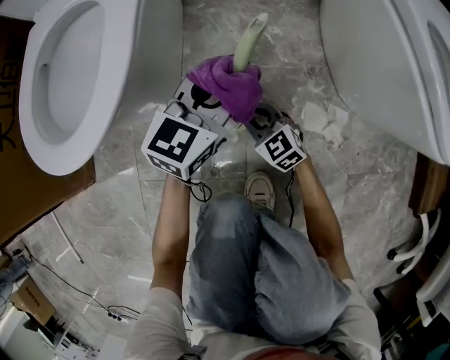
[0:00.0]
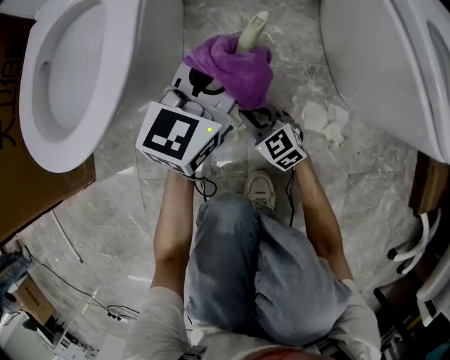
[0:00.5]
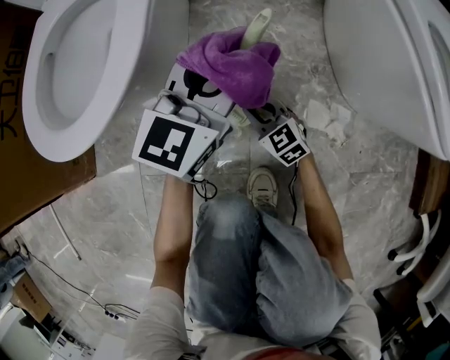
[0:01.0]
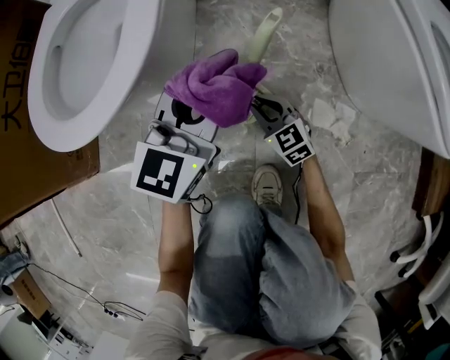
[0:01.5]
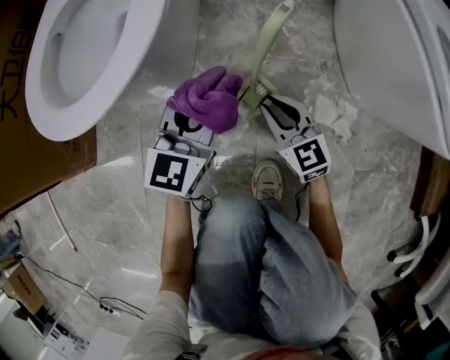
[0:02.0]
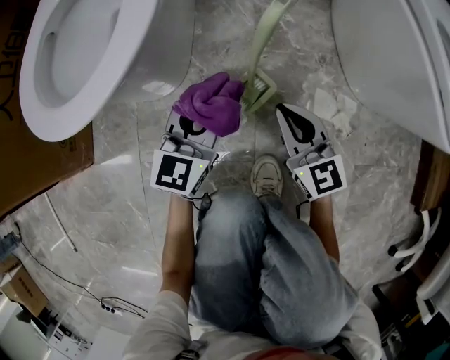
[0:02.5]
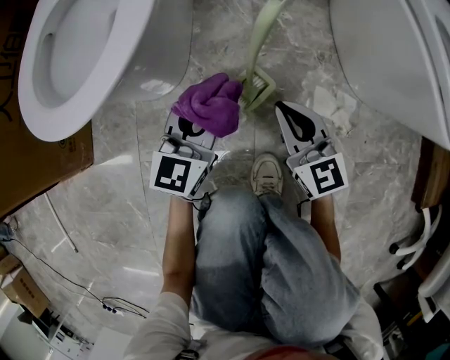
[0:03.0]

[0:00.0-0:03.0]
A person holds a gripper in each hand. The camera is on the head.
0:00.0 to 0:01.5: The left gripper travels to the left and upward by approximately 10 cm.
0:01.5 to 0:03.0: The left gripper travels downward by about 10 cm. The right gripper goes roughly 15 cm upward and backward, and rotates about 20 degrees.

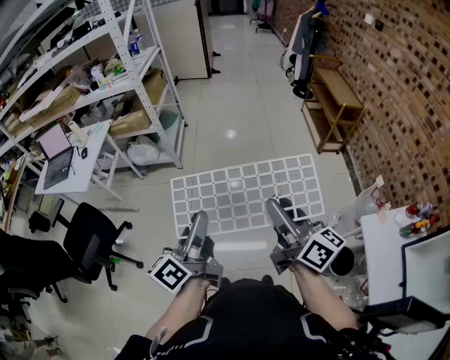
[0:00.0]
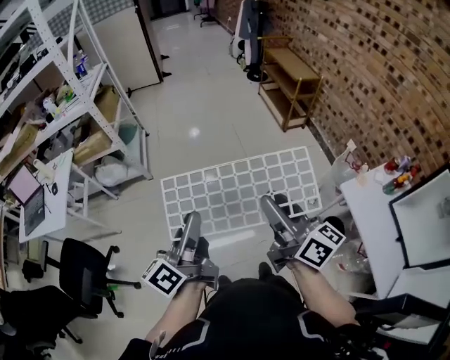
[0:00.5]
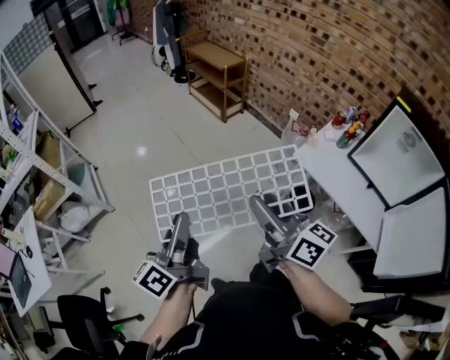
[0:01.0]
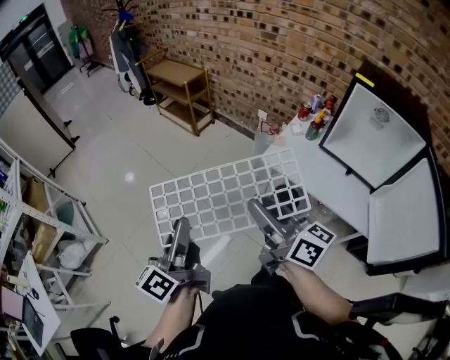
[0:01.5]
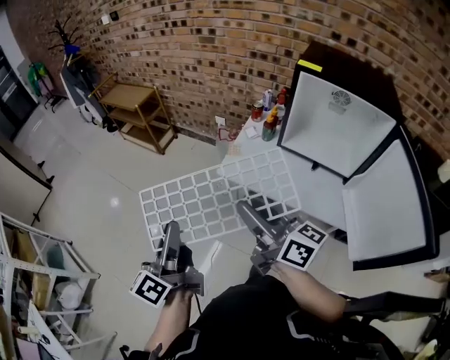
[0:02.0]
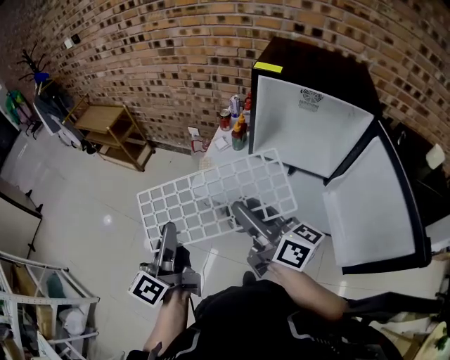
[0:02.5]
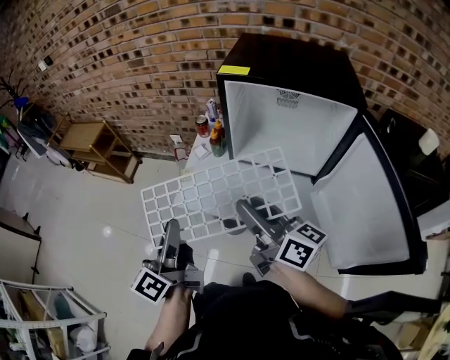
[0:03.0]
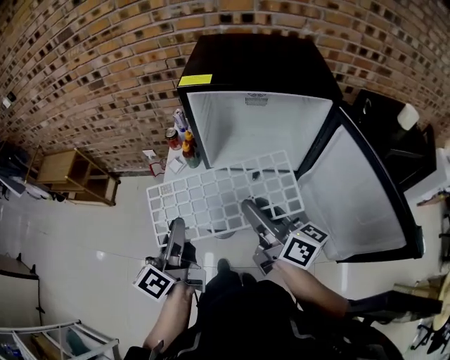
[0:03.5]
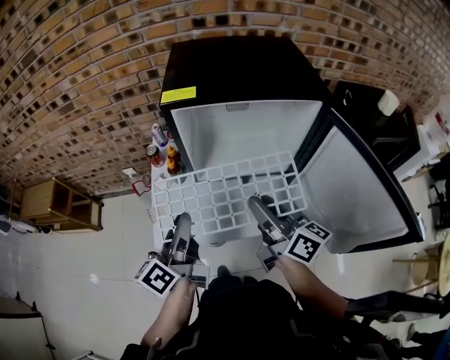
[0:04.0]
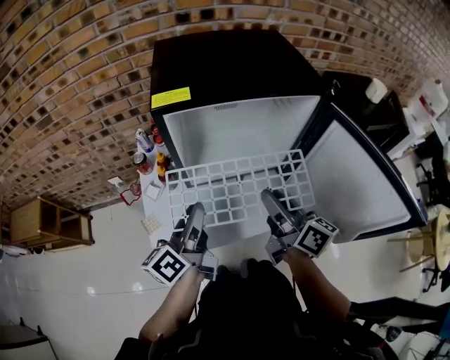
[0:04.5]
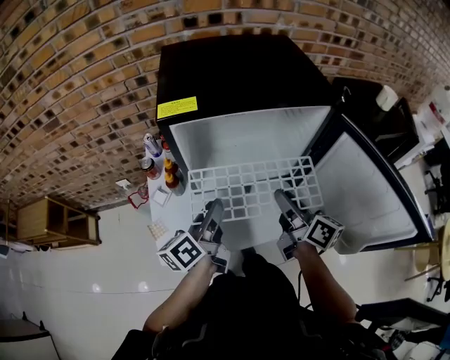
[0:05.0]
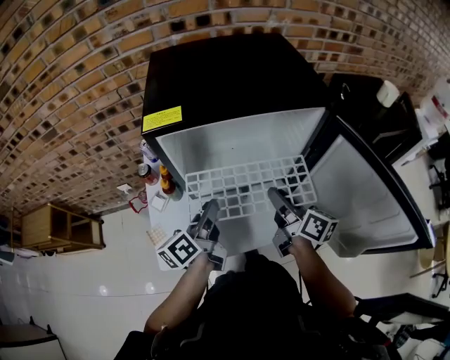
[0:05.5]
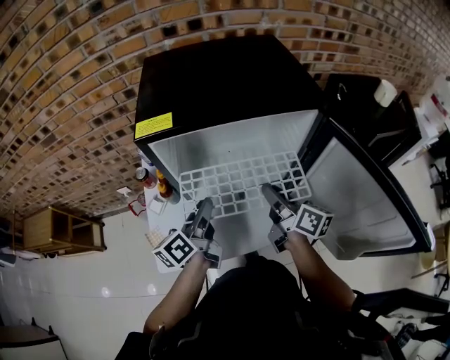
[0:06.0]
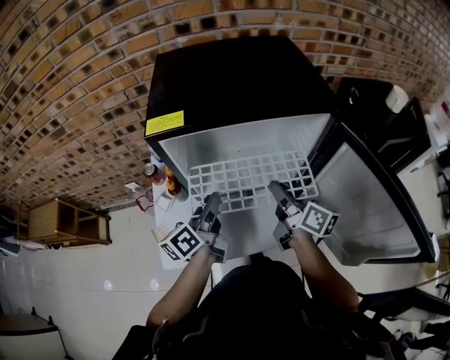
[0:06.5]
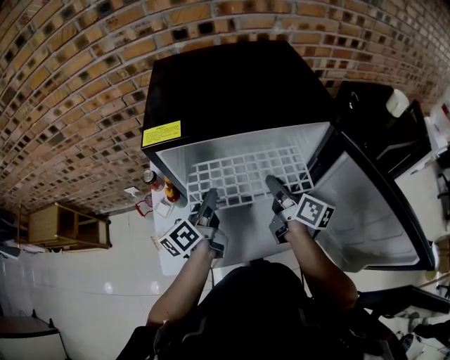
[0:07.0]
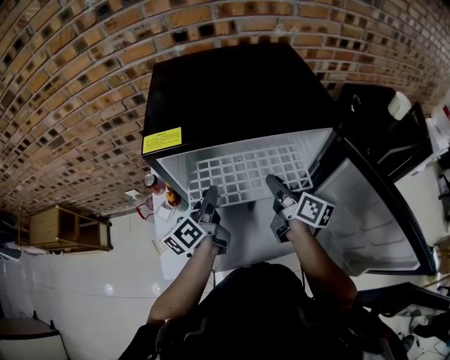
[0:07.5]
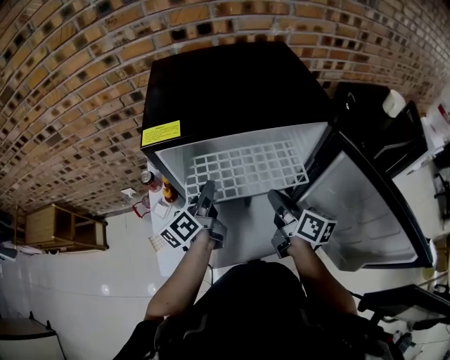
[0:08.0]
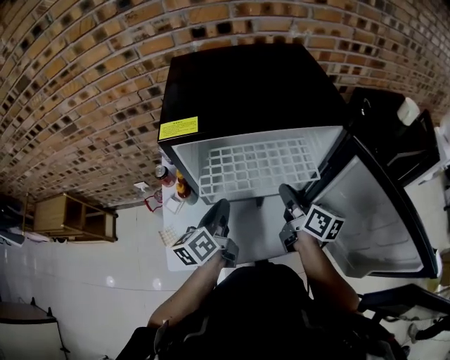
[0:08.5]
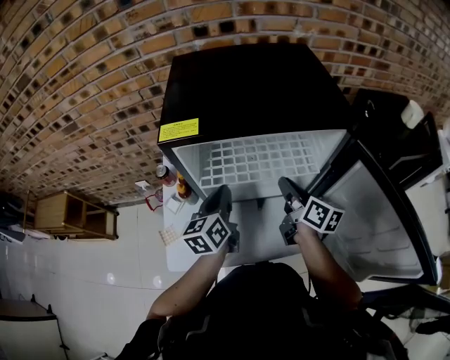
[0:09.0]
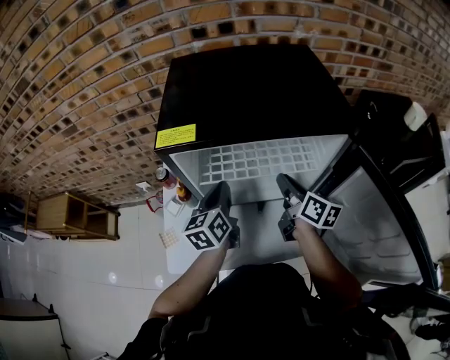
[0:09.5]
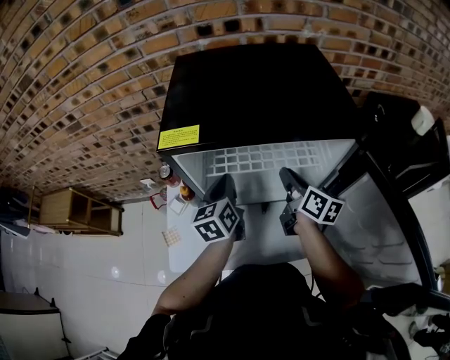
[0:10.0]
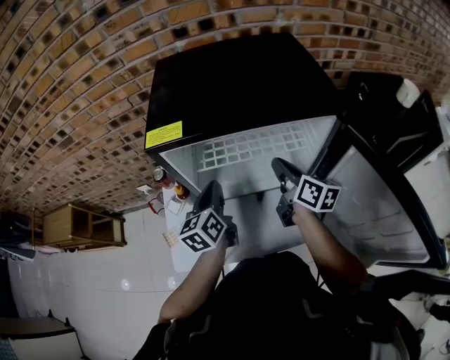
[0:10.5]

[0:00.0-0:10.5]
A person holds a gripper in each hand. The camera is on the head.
0:00.0 to 0:02.0: Both grippers are carried some 40 cm. The right gripper rotates approximately 50 degrees; the left gripper rotates approximately 50 degrees.
0:02.0 to 0:04.0: The right gripper changes place by some 30 cm, and changes its angle by about 40 degrees, while the left gripper shifts by about 40 cm, and swivels roughly 40 degrees.
0:04.0 to 0:06.5: Both grippers move forward, downward and to the right, about 15 cm.
0:06.5 to 0:08.5: The left gripper closes its fingers.
0:08.5 to 0:10.5: Both grippers travel together forward, about 5 cm. The left gripper turns by some 20 degrees.

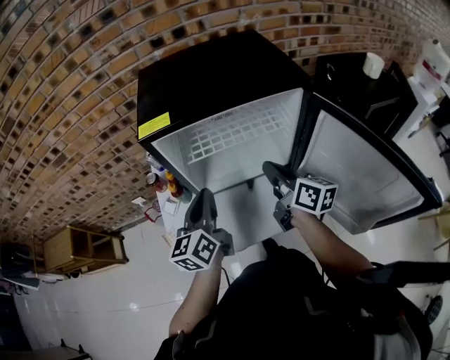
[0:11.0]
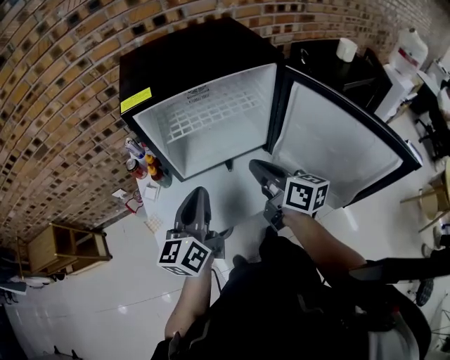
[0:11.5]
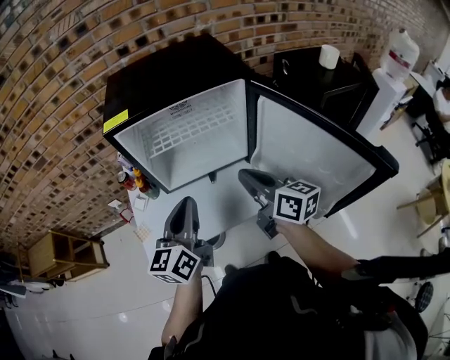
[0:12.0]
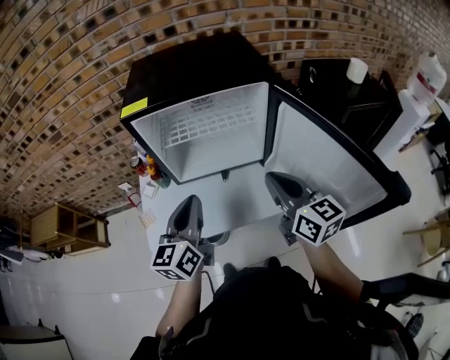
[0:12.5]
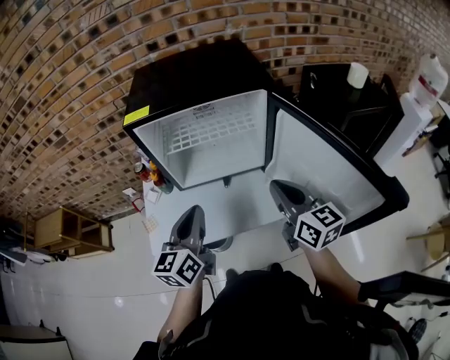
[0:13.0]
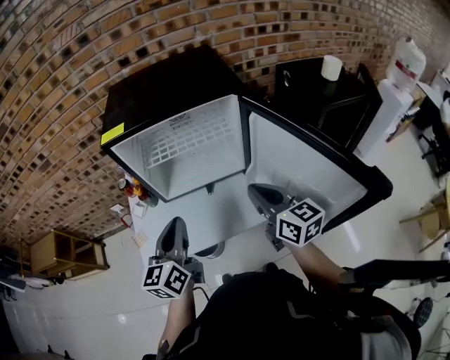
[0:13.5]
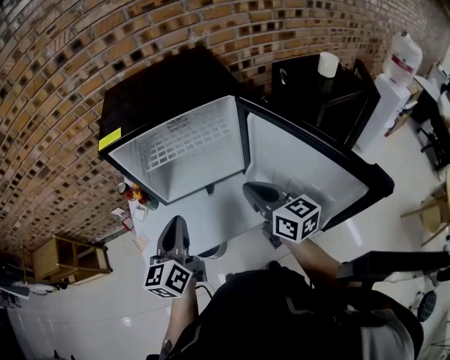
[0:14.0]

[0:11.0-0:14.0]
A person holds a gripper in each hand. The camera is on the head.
0:11.0 to 0:12.5: The left gripper travels backward and to the right by approximately 10 cm, while the right gripper goes approximately 15 cm backward, to the right and upward, and swivels about 20 degrees.
0:12.5 to 0:14.0: The grippers stay close to where they were, moving slightly.

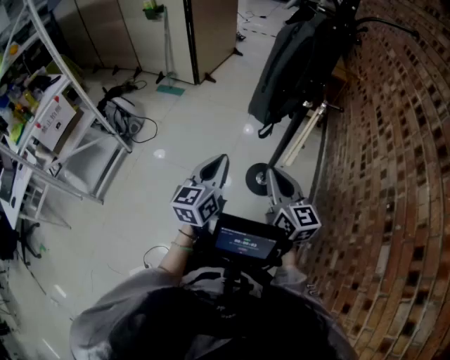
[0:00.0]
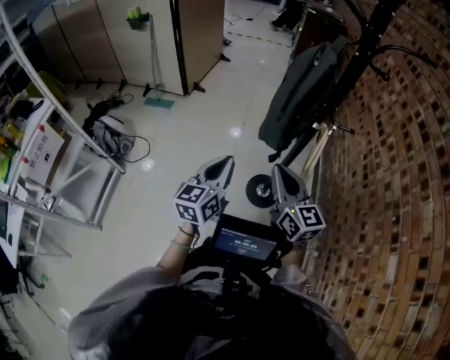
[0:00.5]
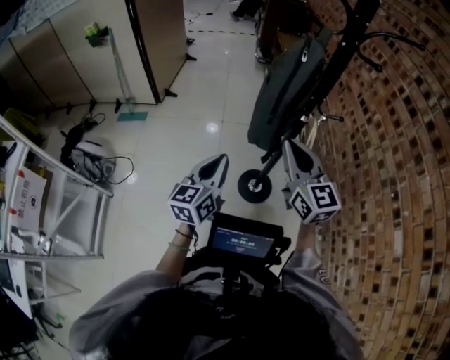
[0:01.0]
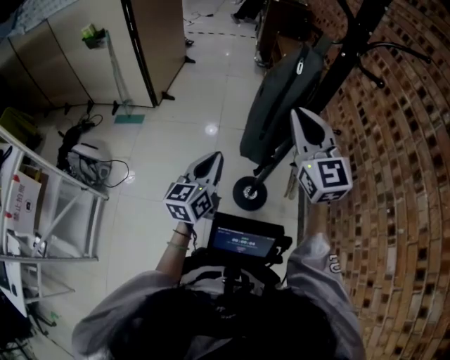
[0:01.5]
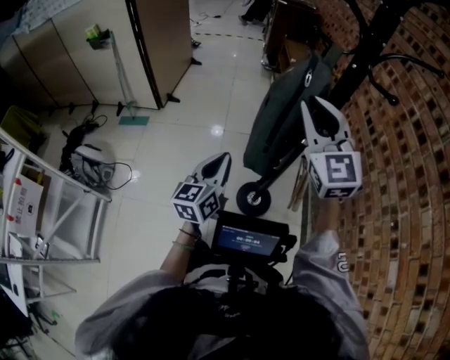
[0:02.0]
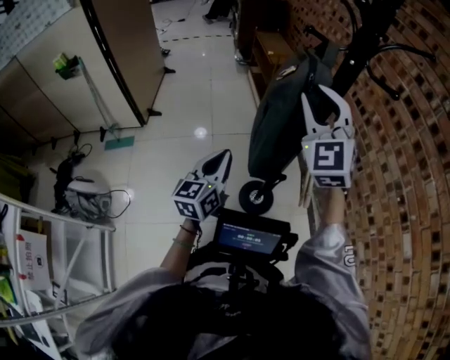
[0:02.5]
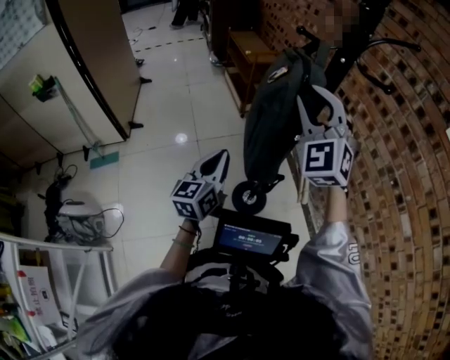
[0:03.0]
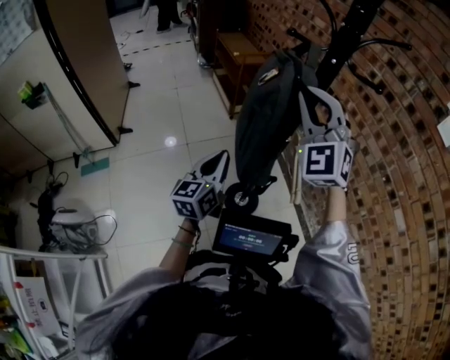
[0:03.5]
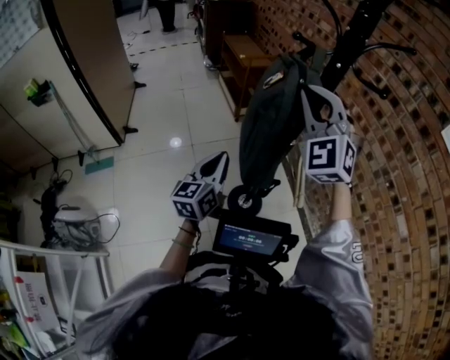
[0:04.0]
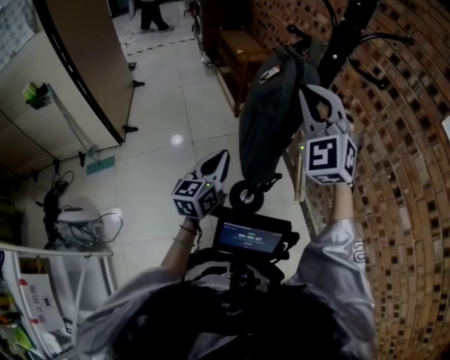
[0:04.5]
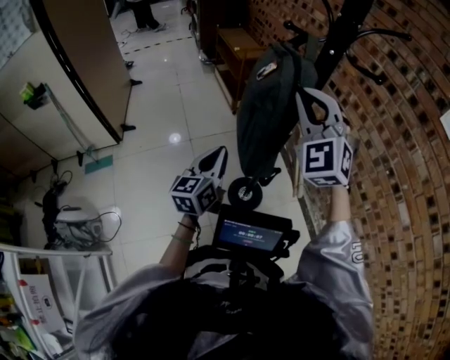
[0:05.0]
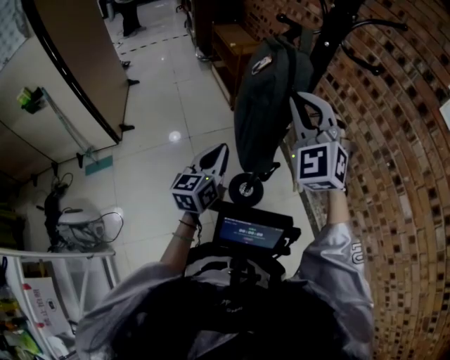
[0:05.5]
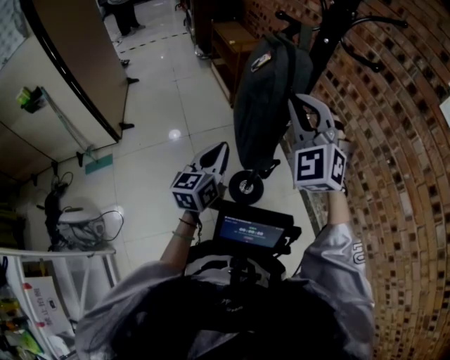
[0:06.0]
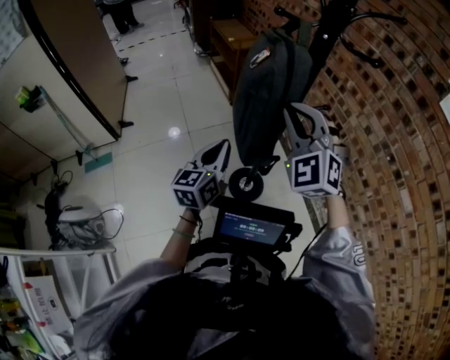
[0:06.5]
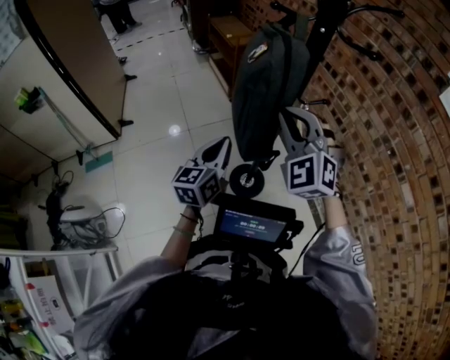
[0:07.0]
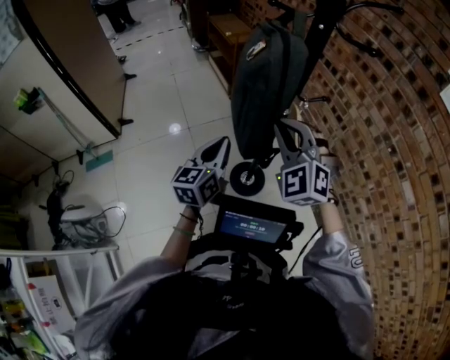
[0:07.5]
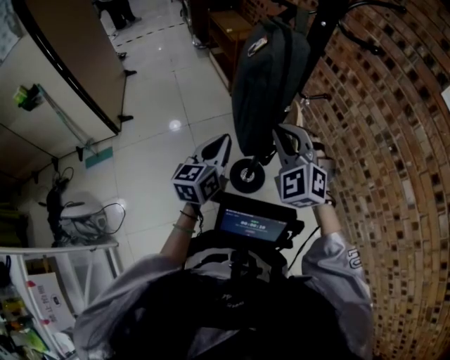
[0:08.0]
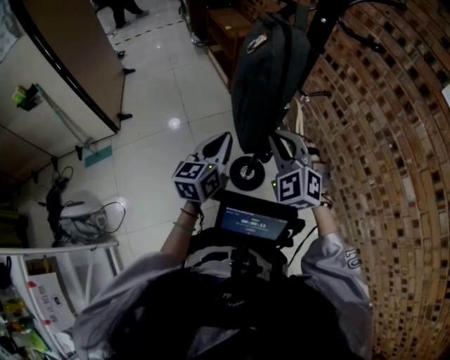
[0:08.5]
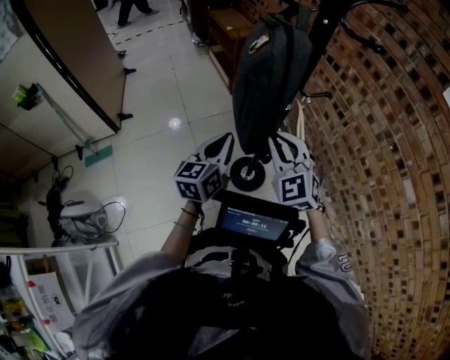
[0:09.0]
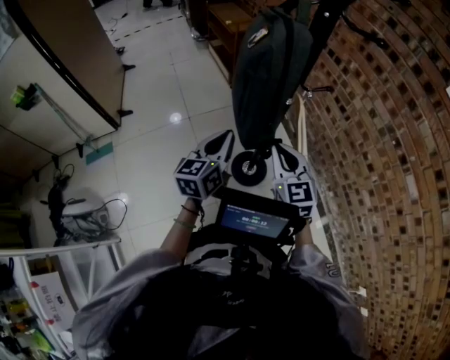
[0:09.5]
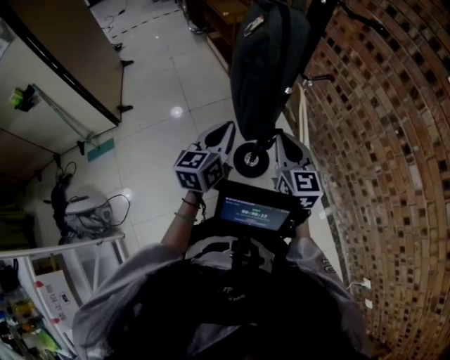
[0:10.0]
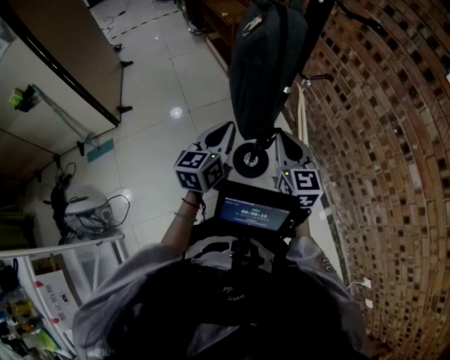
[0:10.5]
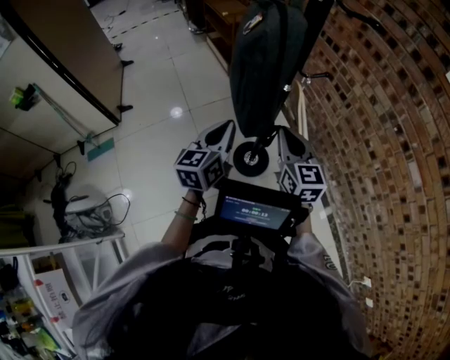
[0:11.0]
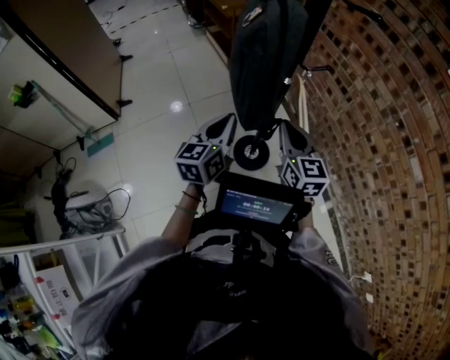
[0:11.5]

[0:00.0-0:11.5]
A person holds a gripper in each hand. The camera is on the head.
0:00.0 to 0:02.0: The left gripper is displaced forward by about 25 cm. The right gripper goes about 35 cm forward and upward, and swivels about 50 degrees.
0:02.0 to 0:04.0: The right gripper ends up some 5 cm from where it was, and turns by approximately 40 degrees, while the left gripper shifts some 10 cm forward.
0:04.0 to 0:06.0: The right gripper goes roughly 5 cm downward.
0:06.0 to 0:07.5: The right gripper travels downward by some 10 cm.
0:07.5 to 0:09.5: The right gripper heads downward, covering some 10 cm, and rolls clockwise, seen from behind, by roughly 50 degrees.
0:09.5 to 0:11.5: There are only small adjustments of the grippers.
